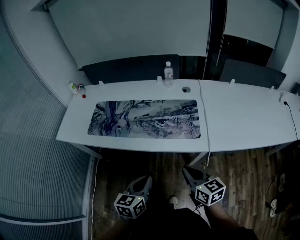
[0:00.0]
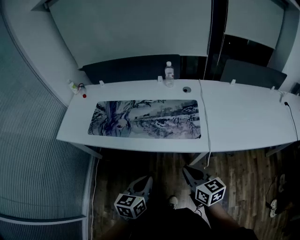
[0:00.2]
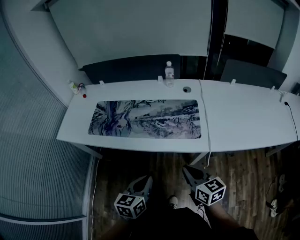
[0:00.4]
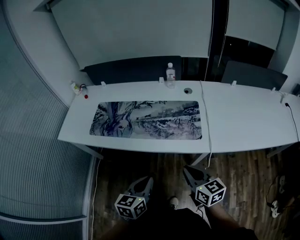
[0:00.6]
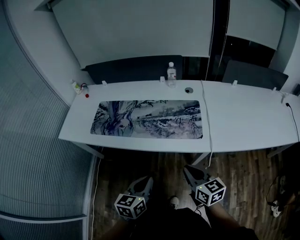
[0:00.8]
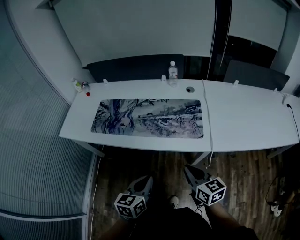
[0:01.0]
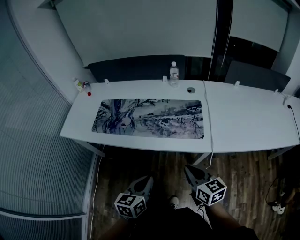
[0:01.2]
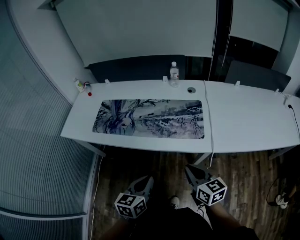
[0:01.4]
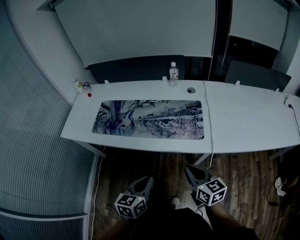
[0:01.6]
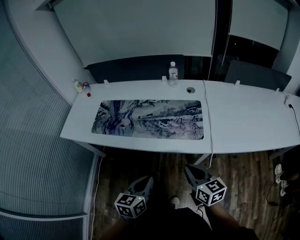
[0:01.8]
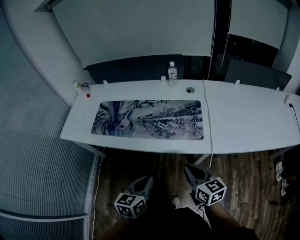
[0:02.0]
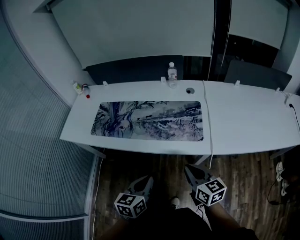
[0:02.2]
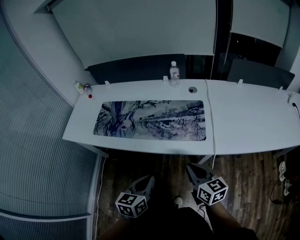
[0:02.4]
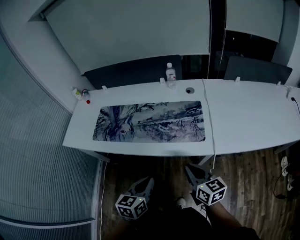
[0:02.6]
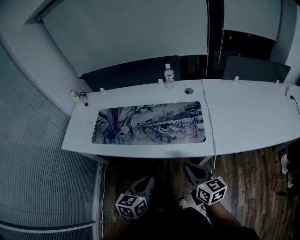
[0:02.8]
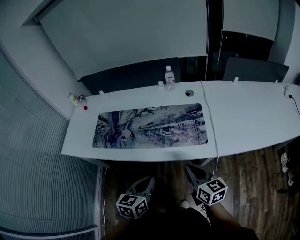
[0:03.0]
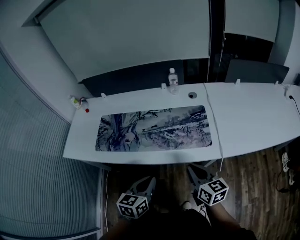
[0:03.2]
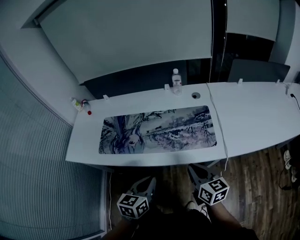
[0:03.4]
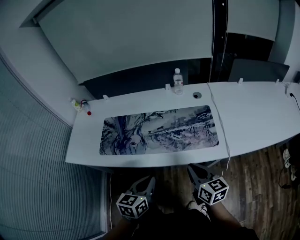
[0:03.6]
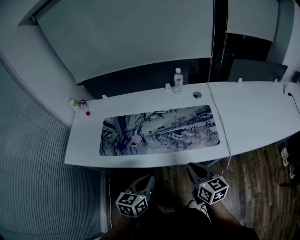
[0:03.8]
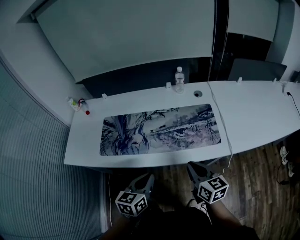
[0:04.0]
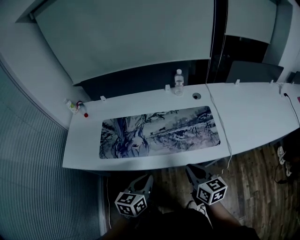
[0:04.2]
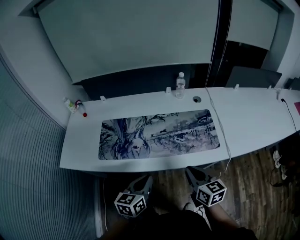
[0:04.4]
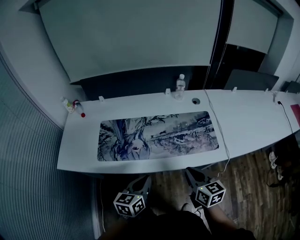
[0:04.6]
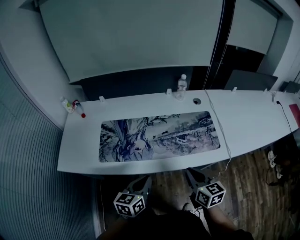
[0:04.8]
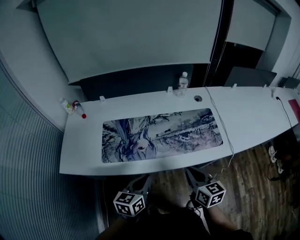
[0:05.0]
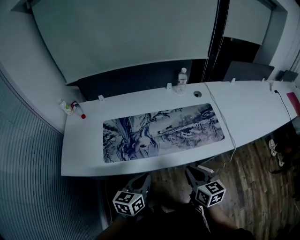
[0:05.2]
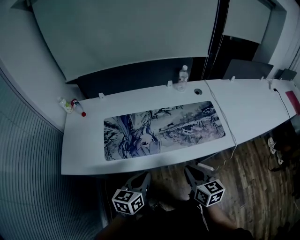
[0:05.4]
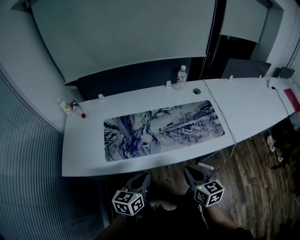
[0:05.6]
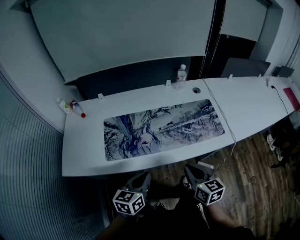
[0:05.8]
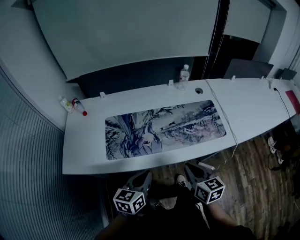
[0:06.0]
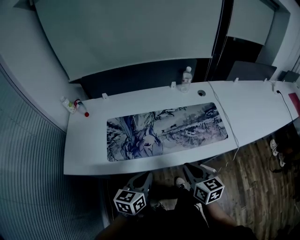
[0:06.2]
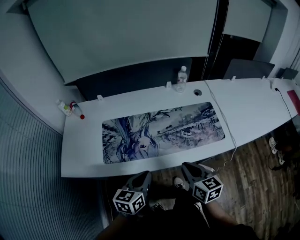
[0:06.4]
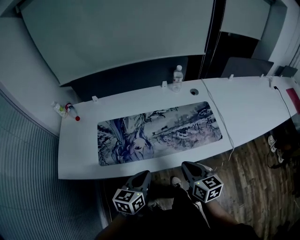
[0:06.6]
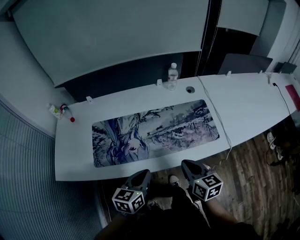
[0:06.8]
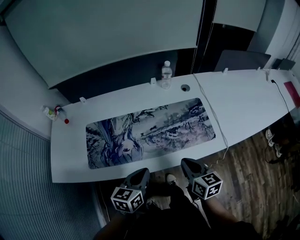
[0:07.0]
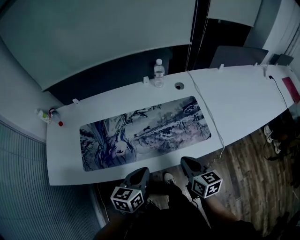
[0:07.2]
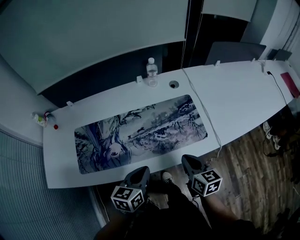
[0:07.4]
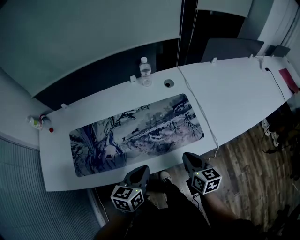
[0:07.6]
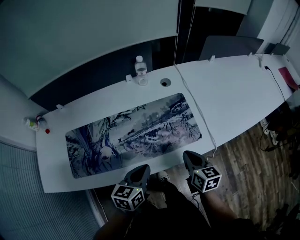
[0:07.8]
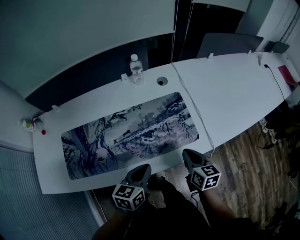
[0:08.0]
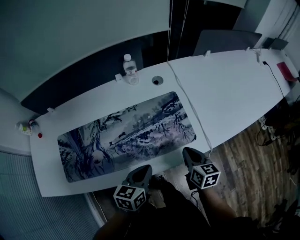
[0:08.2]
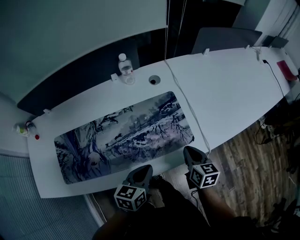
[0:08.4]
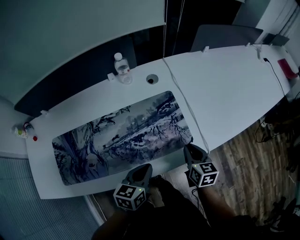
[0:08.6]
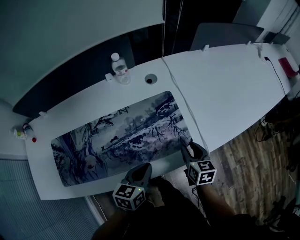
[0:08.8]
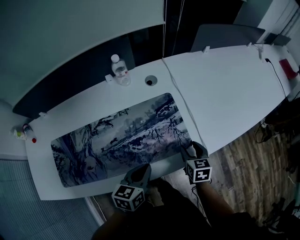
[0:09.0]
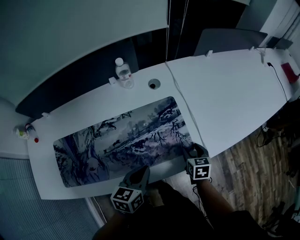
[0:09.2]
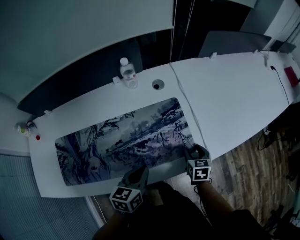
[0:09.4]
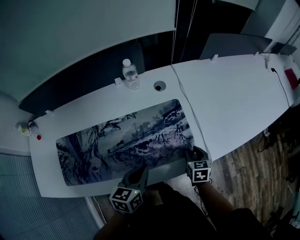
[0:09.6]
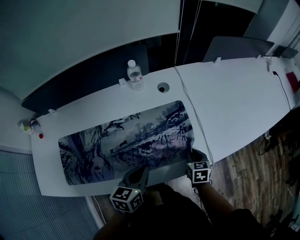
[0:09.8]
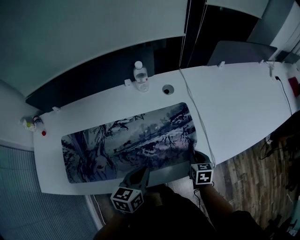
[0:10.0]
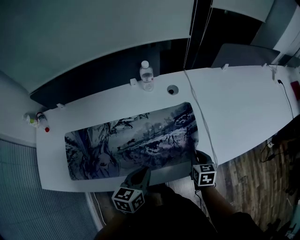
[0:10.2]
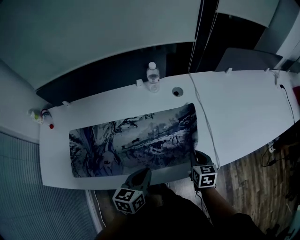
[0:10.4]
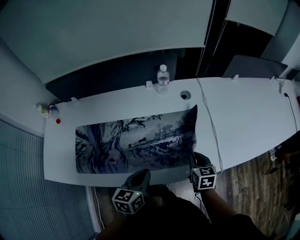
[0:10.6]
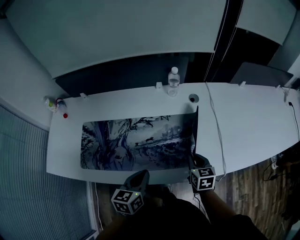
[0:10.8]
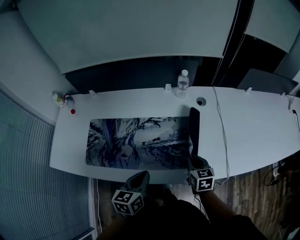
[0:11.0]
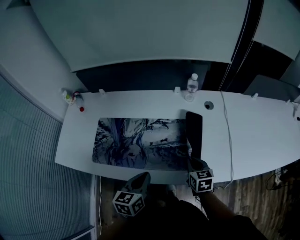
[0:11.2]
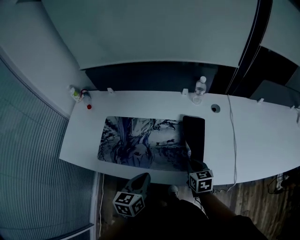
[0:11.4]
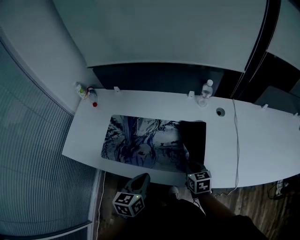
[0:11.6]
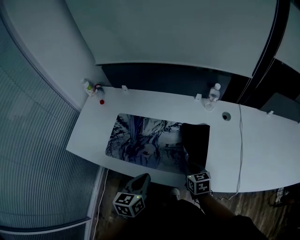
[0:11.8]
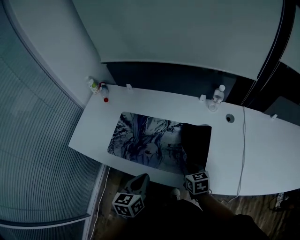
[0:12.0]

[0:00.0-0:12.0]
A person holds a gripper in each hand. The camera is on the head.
0:00.0 to 0:01.6: Neither gripper changes place.
0:01.6 to 0:03.0: Both grippers move forward, approximately 5 cm.
0:03.0 to 0:04.4: The left gripper is displaced to the left and forward by approximately 15 cm, while the right gripper shifts some 15 cm to the left.
0:04.4 to 0:06.0: The grippers both shift to the left by some 10 cm.
0:06.0 to 0:07.6: Both grippers travel together to the right and forward, about 20 cm.
0:07.6 to 0:09.0: The left gripper travels forward and to the right by about 10 cm; the right gripper moves forward, downward and to the right, approximately 20 cm, swivels approximately 20 degrees, and opens up.
0:09.0 to 0:10.4: Both grippers travel together to the left, roughly 5 cm. The right gripper closes its fingers.
0:10.4 to 0:12.0: The right gripper shifts by approximately 25 cm, and changes its angle by roughly 30 degrees. Meanwhile the left gripper ends up approximately 20 cm from where it was, and changes its angle by approximately 30 degrees.

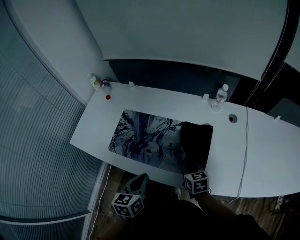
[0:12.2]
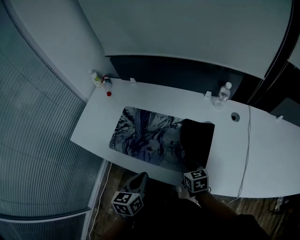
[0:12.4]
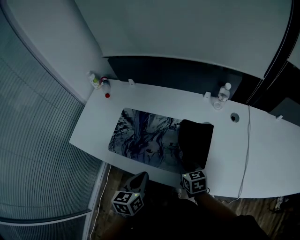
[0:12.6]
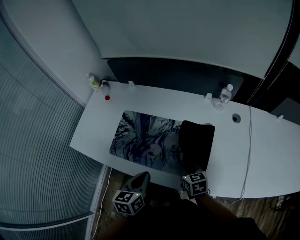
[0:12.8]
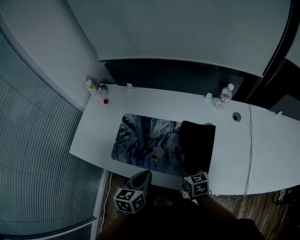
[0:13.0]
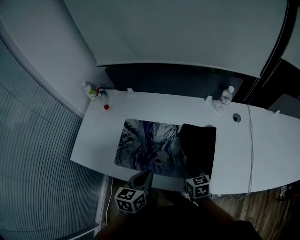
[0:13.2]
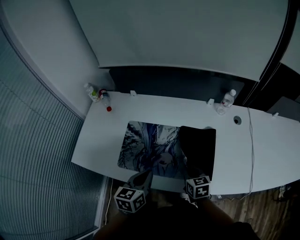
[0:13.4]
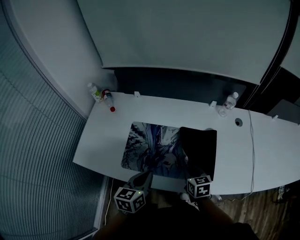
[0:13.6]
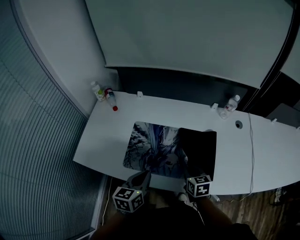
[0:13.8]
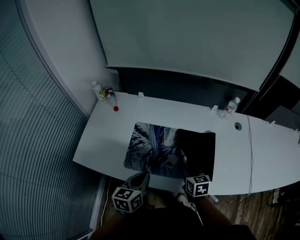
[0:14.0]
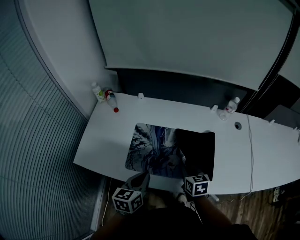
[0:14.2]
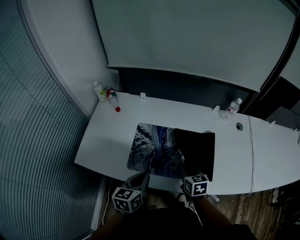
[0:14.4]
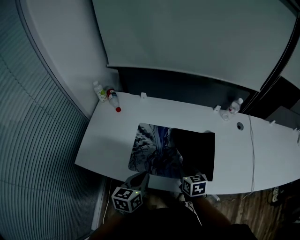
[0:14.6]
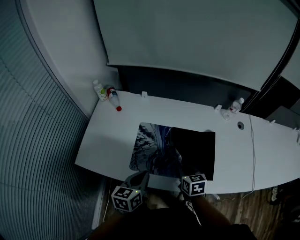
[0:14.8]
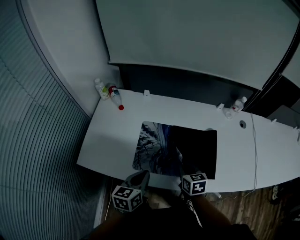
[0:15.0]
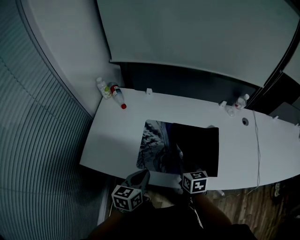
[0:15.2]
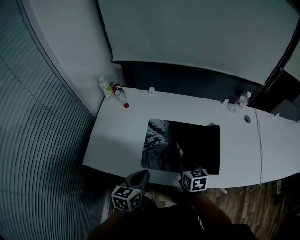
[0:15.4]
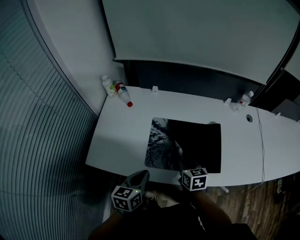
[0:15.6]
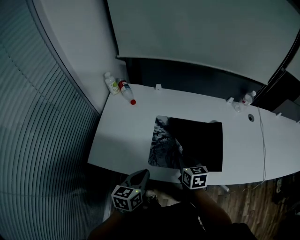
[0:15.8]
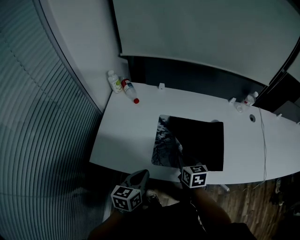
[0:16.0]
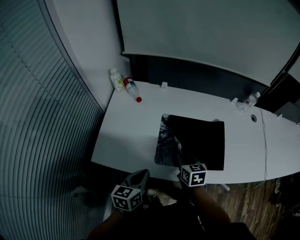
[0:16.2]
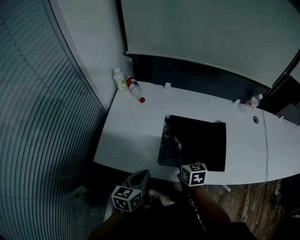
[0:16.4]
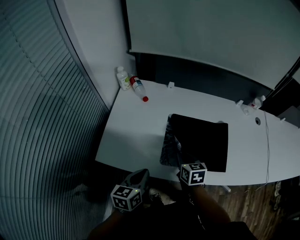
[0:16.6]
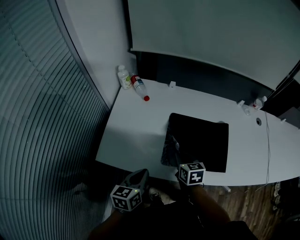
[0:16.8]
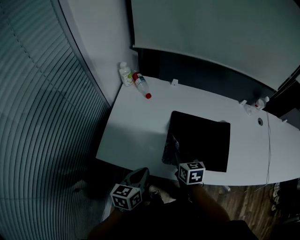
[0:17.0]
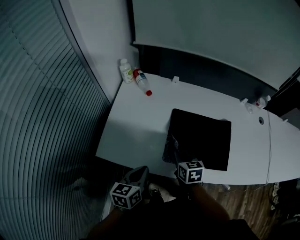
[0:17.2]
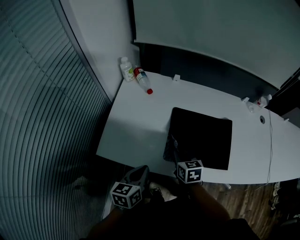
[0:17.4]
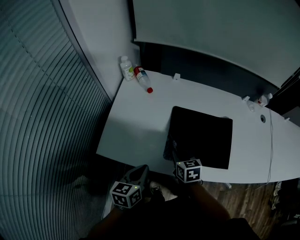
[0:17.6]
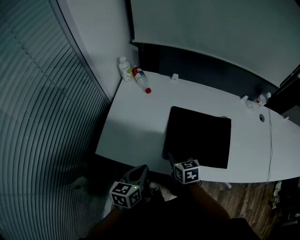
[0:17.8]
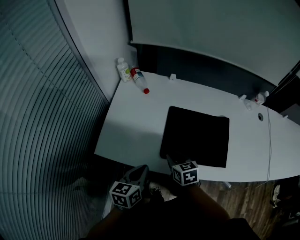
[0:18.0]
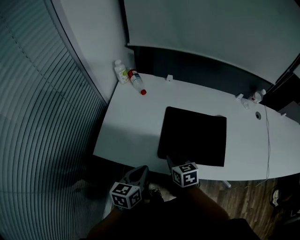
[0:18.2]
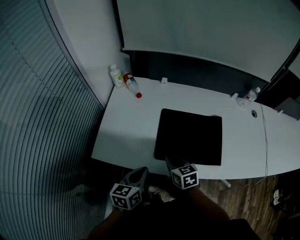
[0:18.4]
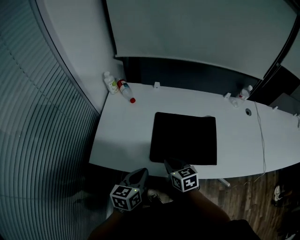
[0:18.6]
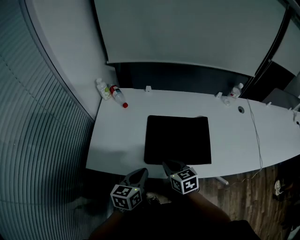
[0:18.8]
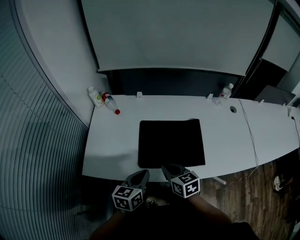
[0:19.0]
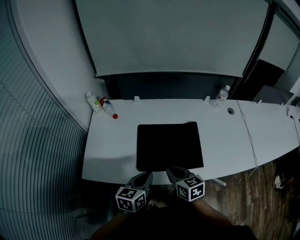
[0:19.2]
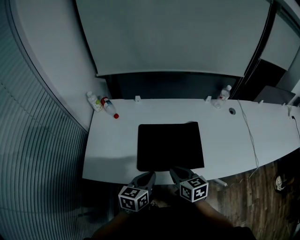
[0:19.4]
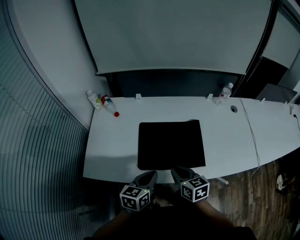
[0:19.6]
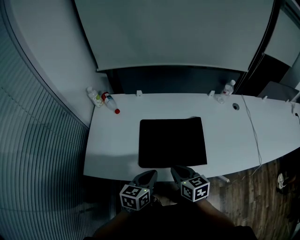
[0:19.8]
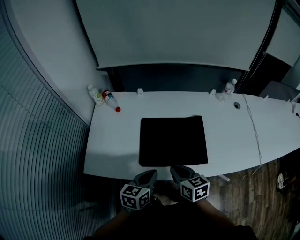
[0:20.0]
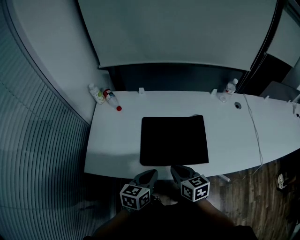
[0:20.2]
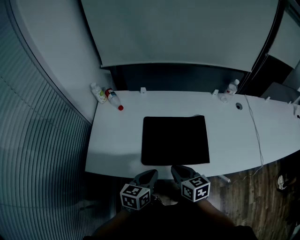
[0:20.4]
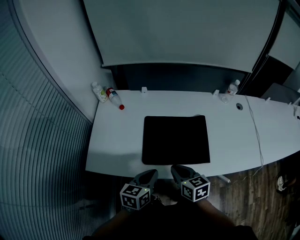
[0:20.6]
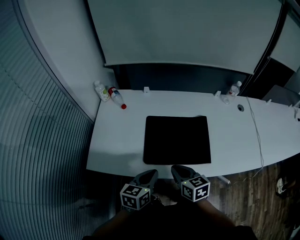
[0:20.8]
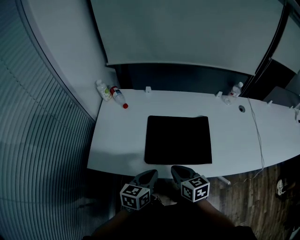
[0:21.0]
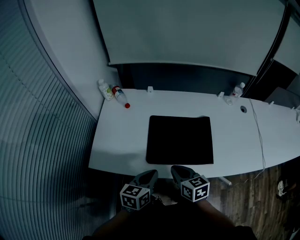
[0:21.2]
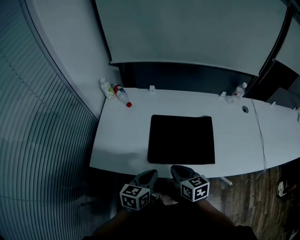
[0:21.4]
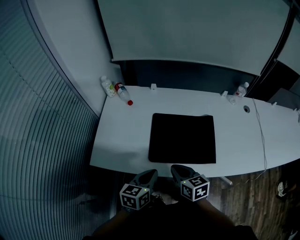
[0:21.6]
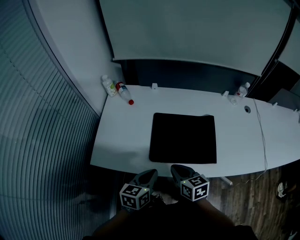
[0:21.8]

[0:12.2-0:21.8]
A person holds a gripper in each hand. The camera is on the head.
0:12.2 to 0:13.8: The left gripper travels to the left and forward by approximately 15 cm. The right gripper shifts roughly 10 cm to the left.
0:13.8 to 0:15.4: The two grippers go approximately 10 cm to the left.
0:15.4 to 0:17.0: The two grippers go some 15 cm to the left.
0:17.0 to 0:18.6: The left gripper heads to the right, covering about 5 cm. The right gripper heads backward, covering about 5 cm.
0:18.6 to 0:20.2: The grippers both shift to the right by some 10 cm.
0:20.2 to 0:21.8: The grippers move only a little.

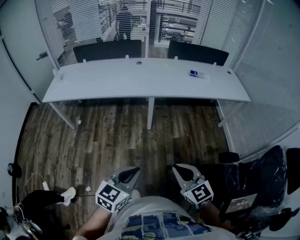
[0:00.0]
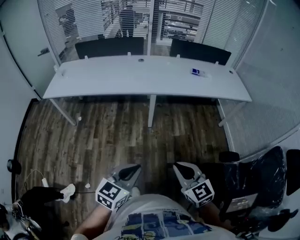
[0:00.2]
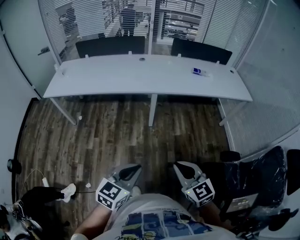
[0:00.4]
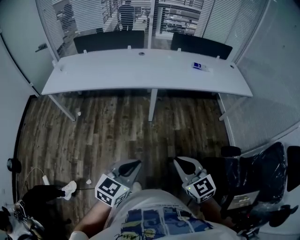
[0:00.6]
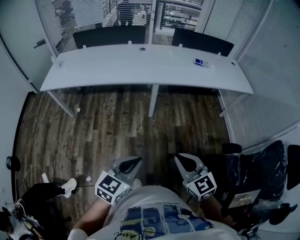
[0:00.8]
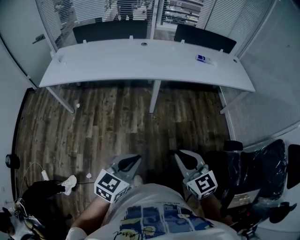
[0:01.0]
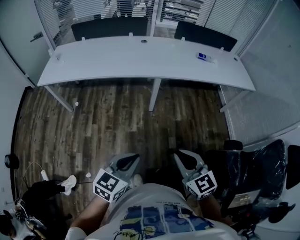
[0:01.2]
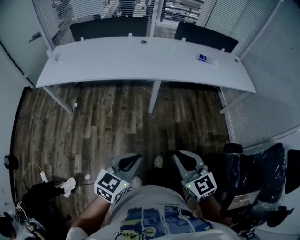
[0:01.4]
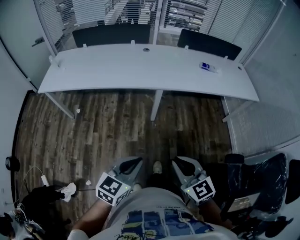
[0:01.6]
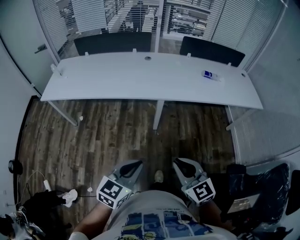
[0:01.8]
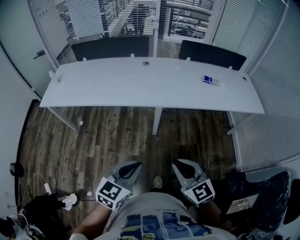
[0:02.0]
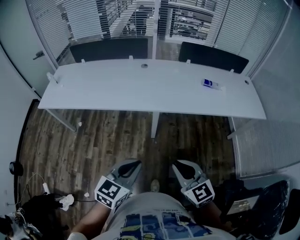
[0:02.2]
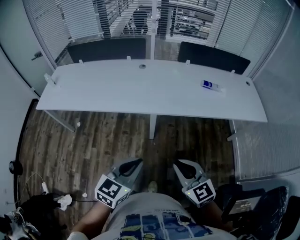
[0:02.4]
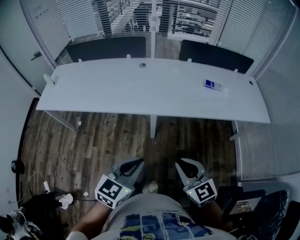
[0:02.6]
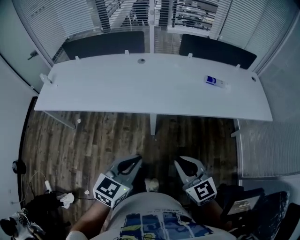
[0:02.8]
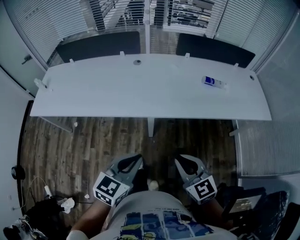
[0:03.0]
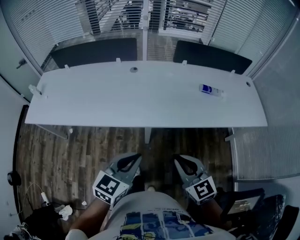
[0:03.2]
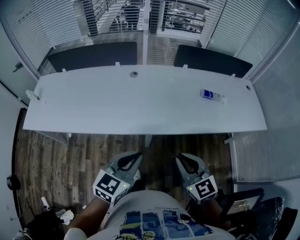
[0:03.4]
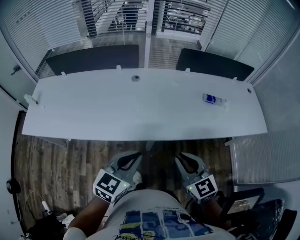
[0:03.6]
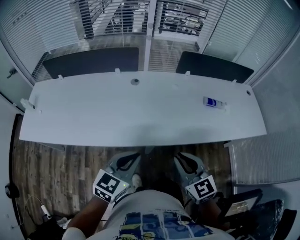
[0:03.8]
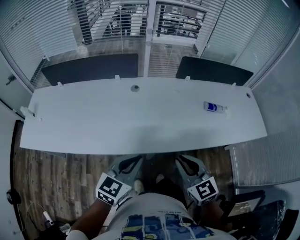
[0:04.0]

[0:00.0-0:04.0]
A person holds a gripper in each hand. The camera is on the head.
0:00.0 to 0:01.4: Both grippers travel together to the left and forward, approximately 10 cm.
0:01.4 to 0:02.6: The two grippers go approximately 25 cm forward and to the right.
0:02.6 to 0:04.0: The two grippers go about 25 cm forward.
